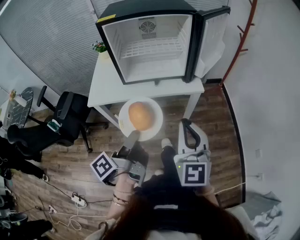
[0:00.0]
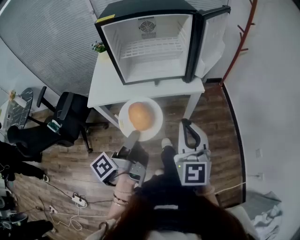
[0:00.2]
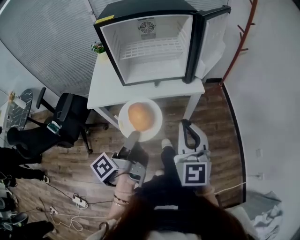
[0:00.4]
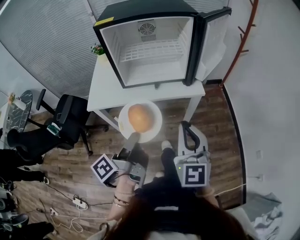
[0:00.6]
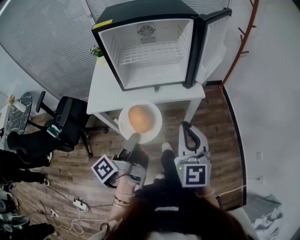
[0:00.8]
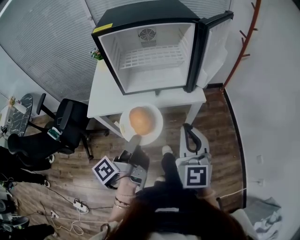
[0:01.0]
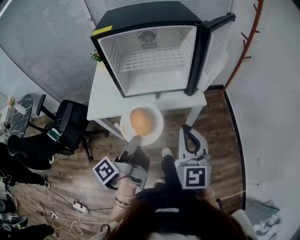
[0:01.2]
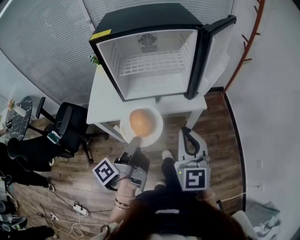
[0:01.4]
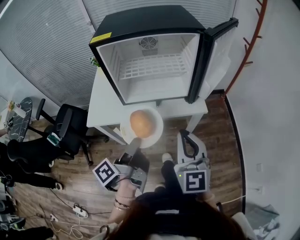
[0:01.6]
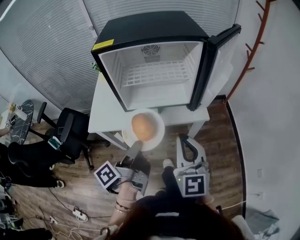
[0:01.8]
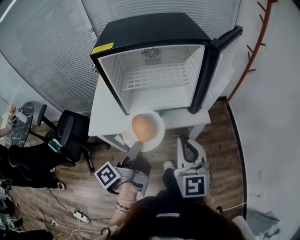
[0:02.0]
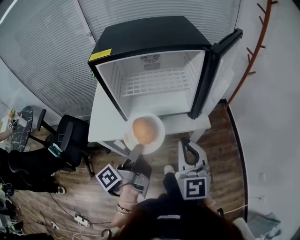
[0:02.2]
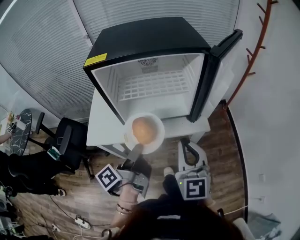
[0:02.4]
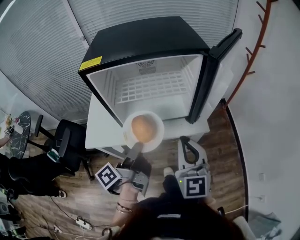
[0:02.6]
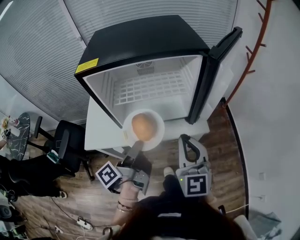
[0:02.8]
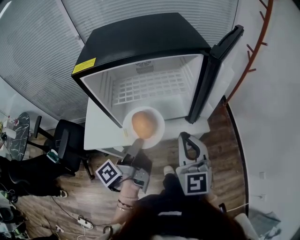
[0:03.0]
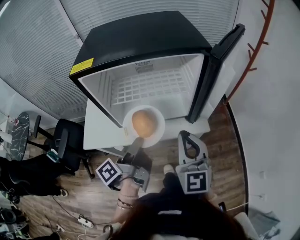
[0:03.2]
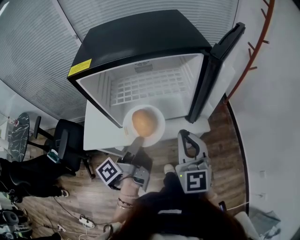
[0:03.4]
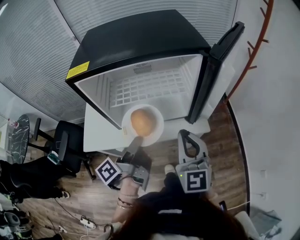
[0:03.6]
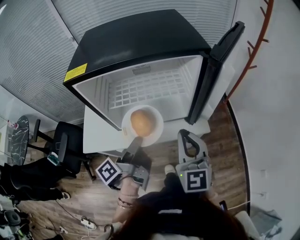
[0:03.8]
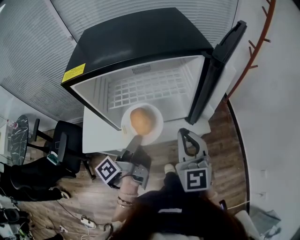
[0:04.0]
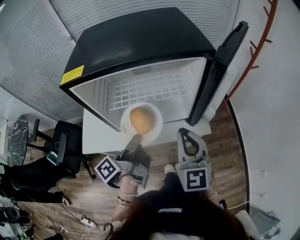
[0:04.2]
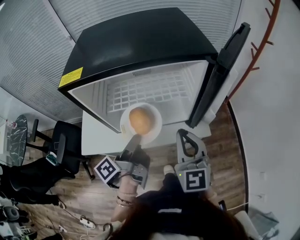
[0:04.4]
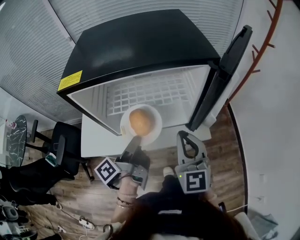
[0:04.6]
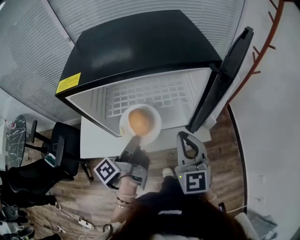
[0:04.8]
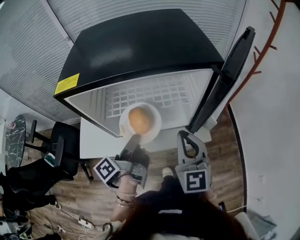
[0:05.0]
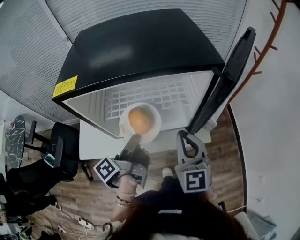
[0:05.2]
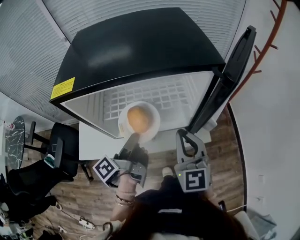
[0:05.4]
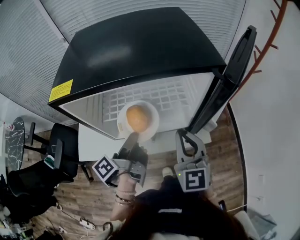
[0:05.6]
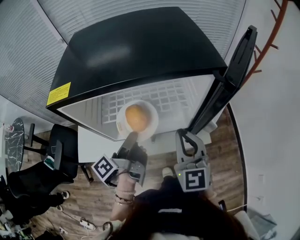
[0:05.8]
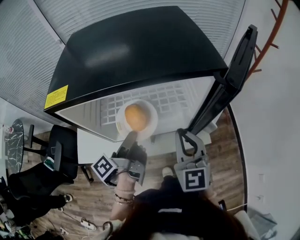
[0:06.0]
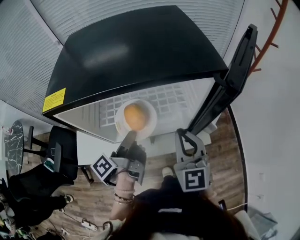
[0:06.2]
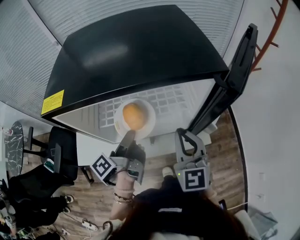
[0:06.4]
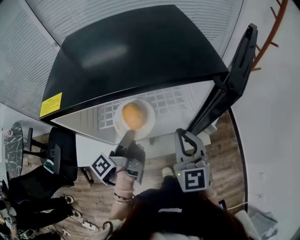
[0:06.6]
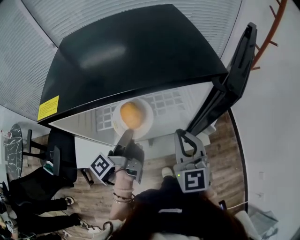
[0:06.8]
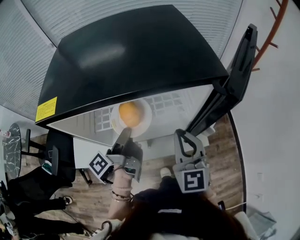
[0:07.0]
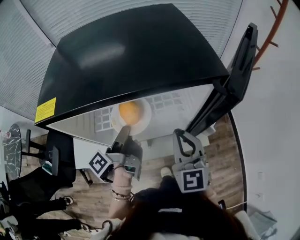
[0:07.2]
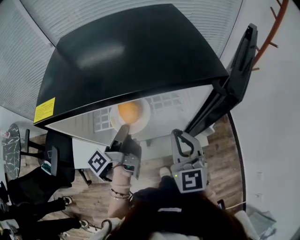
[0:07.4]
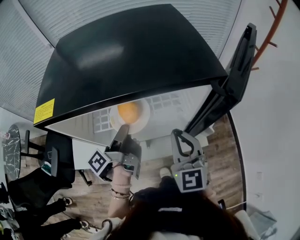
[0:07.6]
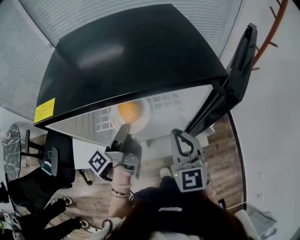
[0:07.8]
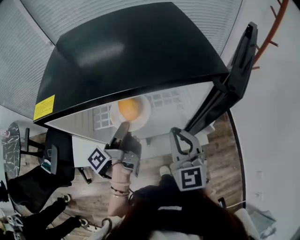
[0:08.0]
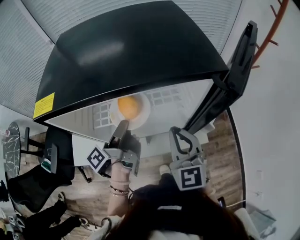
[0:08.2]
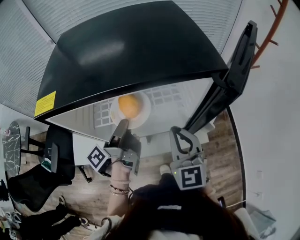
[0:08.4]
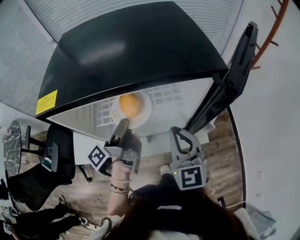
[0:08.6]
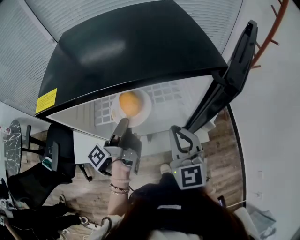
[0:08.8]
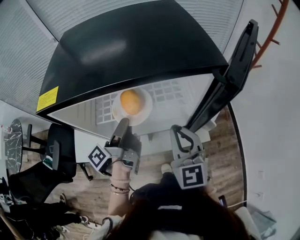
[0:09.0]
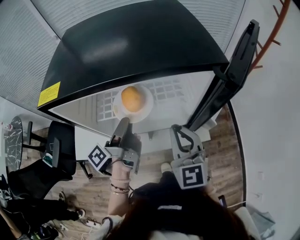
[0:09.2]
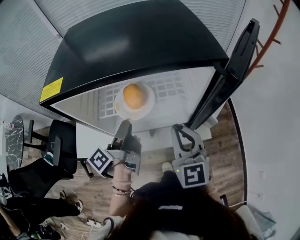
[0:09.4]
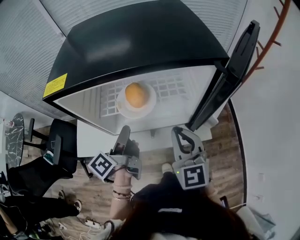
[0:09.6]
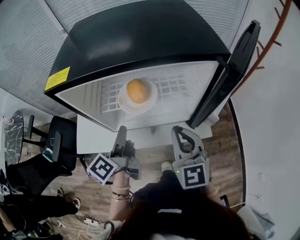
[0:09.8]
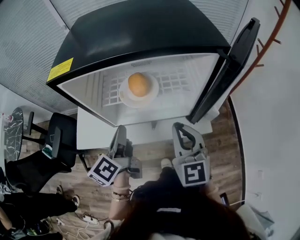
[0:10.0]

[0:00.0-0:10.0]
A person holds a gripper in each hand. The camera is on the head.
0:00.0 to 0:01.4: The right gripper changes place by some 10 cm.
0:01.4 to 0:02.8: The right gripper ends up approximately 10 cm from where it was.
0:02.8 to 0:04.2: The right gripper moves about 5 cm.
0:04.2 to 0:05.8: The right gripper ends up approximately 5 cm from where it was.
0:08.6 to 0:10.0: The right gripper moves approximately 5 cm.

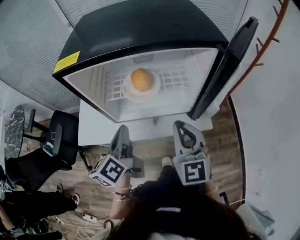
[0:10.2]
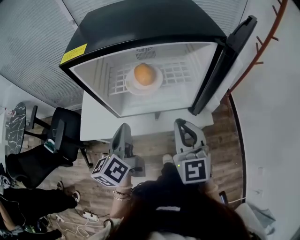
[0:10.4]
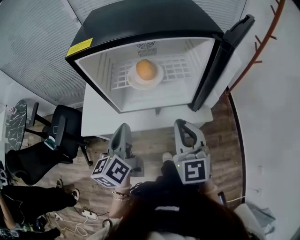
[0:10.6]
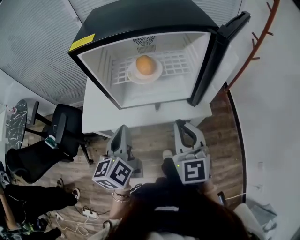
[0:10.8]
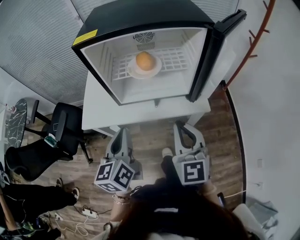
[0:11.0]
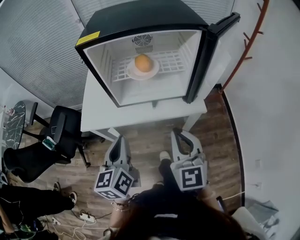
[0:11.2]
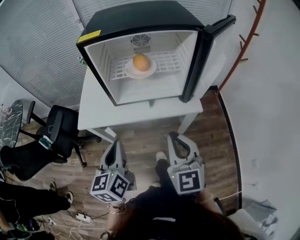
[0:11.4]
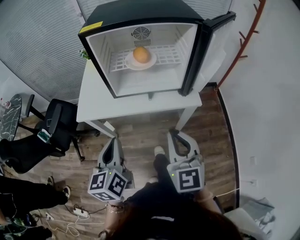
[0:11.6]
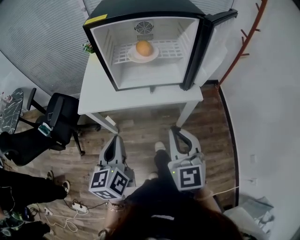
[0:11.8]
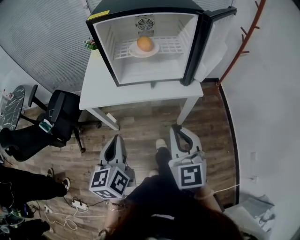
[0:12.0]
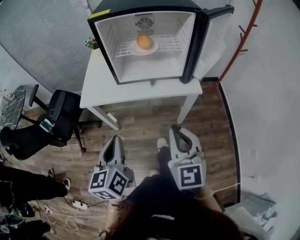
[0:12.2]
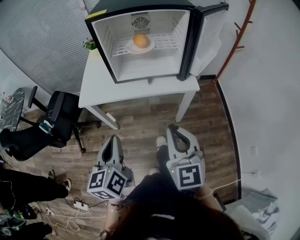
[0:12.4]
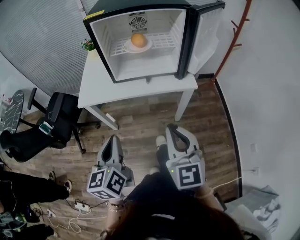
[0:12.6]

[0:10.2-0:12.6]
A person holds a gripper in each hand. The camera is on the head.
0:10.2 to 0:11.4: The right gripper shifts by approximately 15 cm.
0:11.4 to 0:12.6: The right gripper moves about 10 cm.

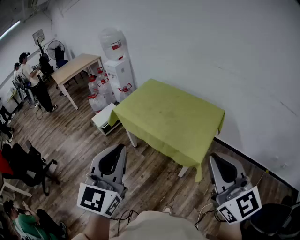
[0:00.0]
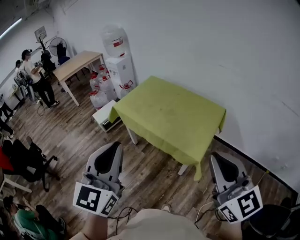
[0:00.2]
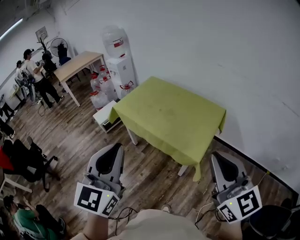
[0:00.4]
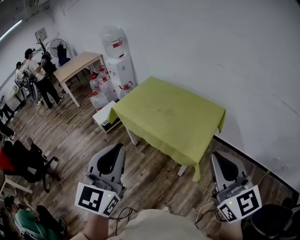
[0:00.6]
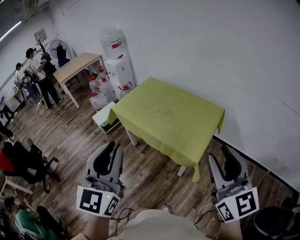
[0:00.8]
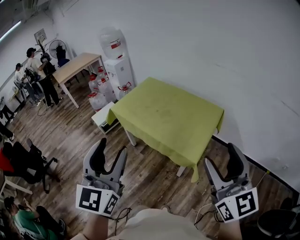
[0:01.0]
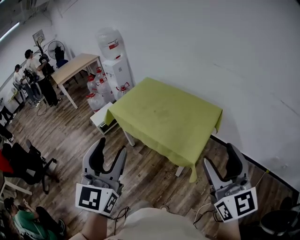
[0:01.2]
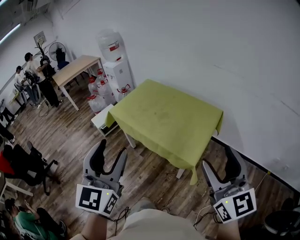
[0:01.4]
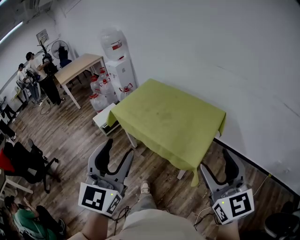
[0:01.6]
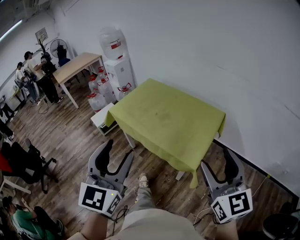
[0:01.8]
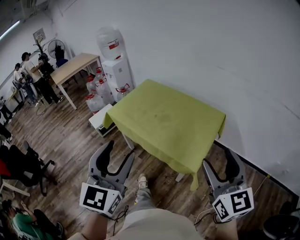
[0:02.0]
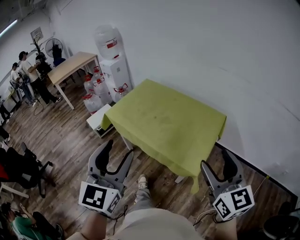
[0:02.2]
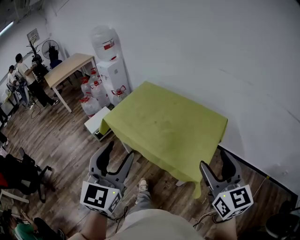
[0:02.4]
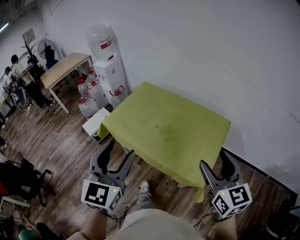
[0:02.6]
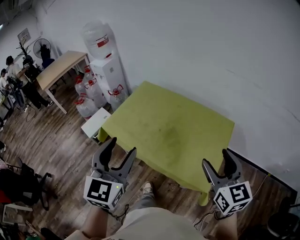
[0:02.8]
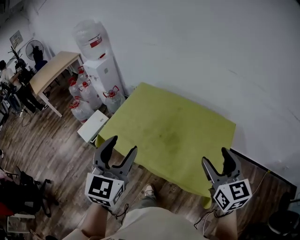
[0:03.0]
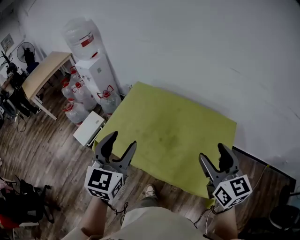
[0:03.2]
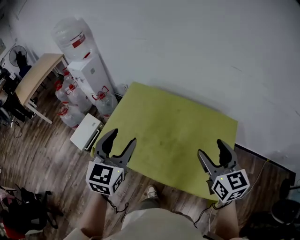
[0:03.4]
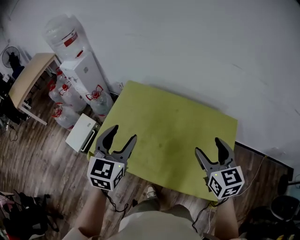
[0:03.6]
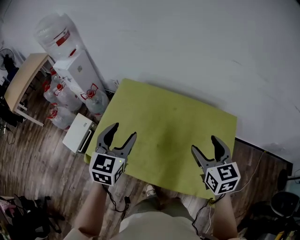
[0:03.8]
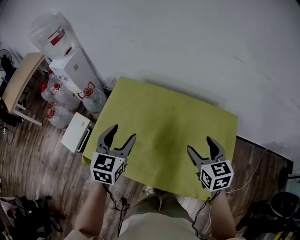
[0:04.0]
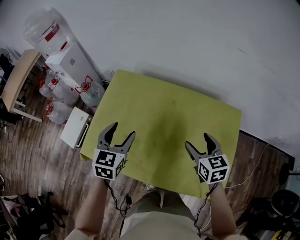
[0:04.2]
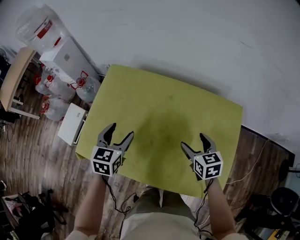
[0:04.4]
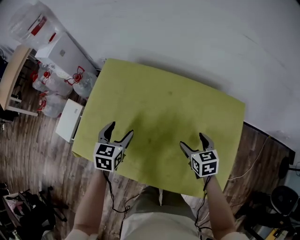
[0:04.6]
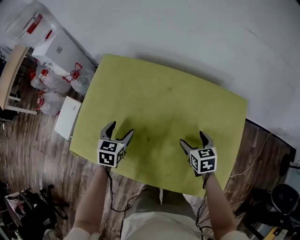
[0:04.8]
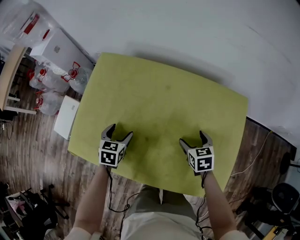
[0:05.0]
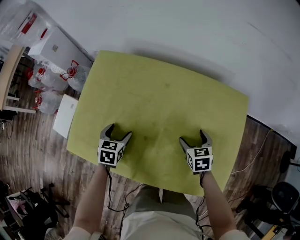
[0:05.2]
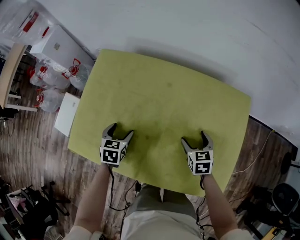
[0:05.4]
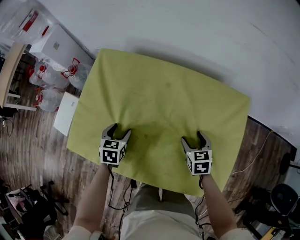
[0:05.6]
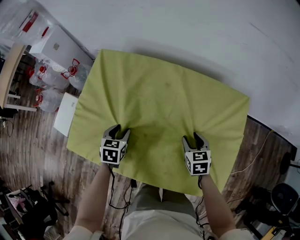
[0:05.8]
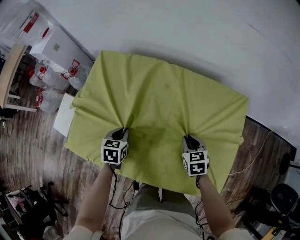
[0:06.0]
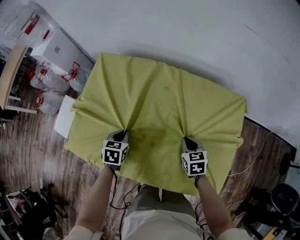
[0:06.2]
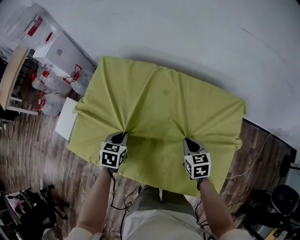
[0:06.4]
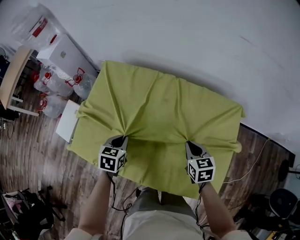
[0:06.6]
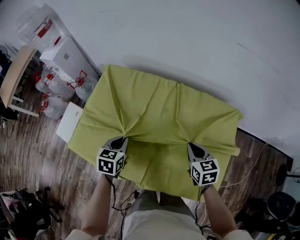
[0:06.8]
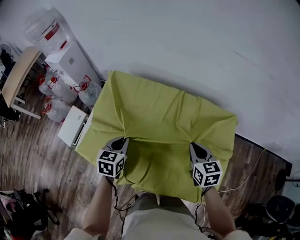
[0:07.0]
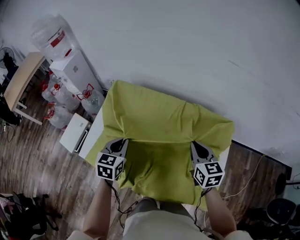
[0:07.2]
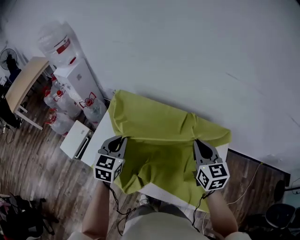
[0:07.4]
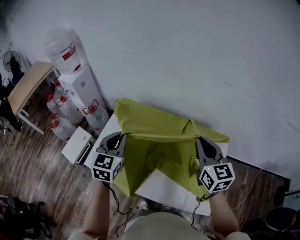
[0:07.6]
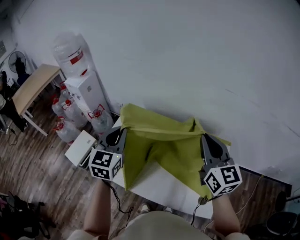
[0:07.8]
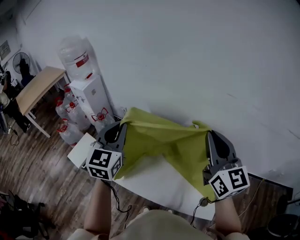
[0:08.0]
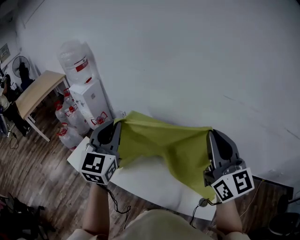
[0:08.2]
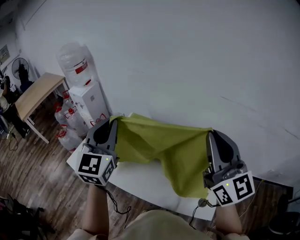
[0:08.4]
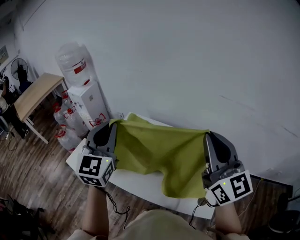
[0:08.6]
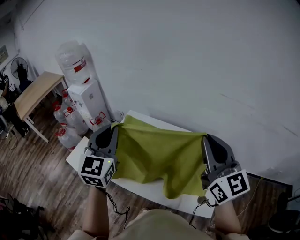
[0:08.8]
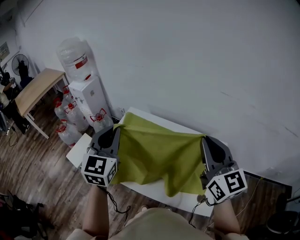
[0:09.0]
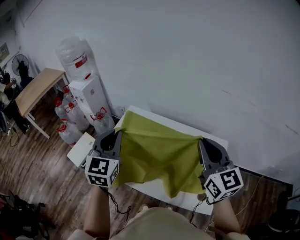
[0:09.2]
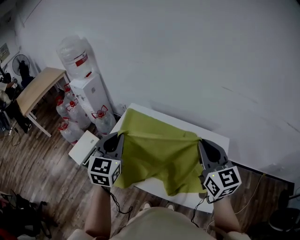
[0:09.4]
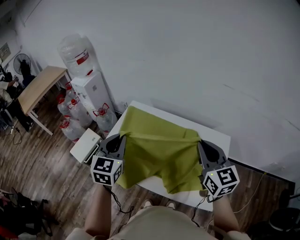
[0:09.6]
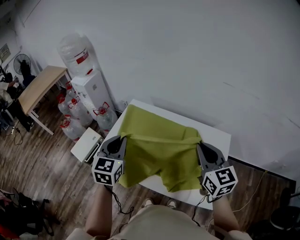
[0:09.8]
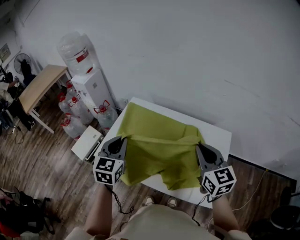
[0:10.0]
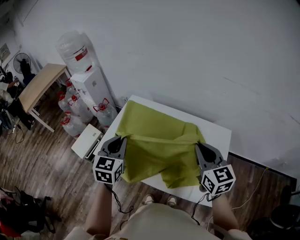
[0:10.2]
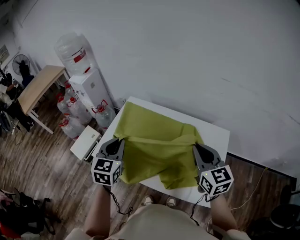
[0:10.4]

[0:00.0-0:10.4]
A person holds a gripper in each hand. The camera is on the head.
0:00.0 to 0:01.4: The left gripper ends up some 5 cm from where it was, and opens. Meanwhile the right gripper travels to the right by about 10 cm, and opens.
0:01.4 to 0:03.0: The grippers both shift forward by roughly 35 cm. The right gripper rotates some 20 degrees.
0:03.0 to 0:04.4: The right gripper is displaced downward and forward by approximately 35 cm, and turns by roughly 30 degrees, while the left gripper goes about 40 cm forward and downward, and swivels approximately 30 degrees.
0:04.4 to 0:06.0: Both grippers travel together downward, some 15 cm. The right gripper closes up. The left gripper swivels about 20 degrees, and closes.
0:06.0 to 0:07.4: Both grippers move upward, about 30 cm. The right gripper angles its fingers upward, by about 30 degrees, while the left gripper swivels roughly 30 degrees.
0:07.4 to 0:09.0: The left gripper goes roughly 20 cm upward, and rotates about 20 degrees. Meanwhile the right gripper heads upward and backward, covering approximately 25 cm, and swivels approximately 20 degrees.
0:09.0 to 0:10.4: Both grippers move downward, approximately 15 cm.

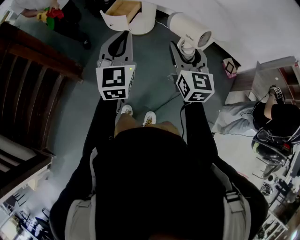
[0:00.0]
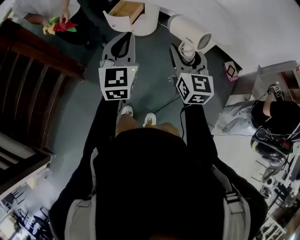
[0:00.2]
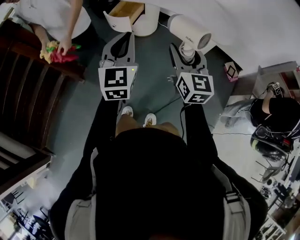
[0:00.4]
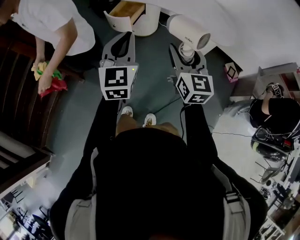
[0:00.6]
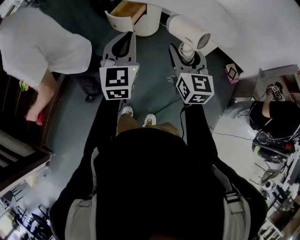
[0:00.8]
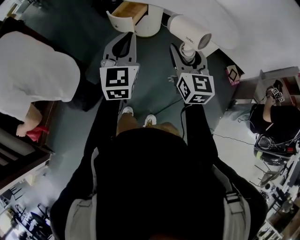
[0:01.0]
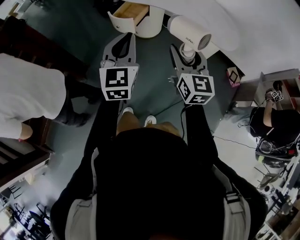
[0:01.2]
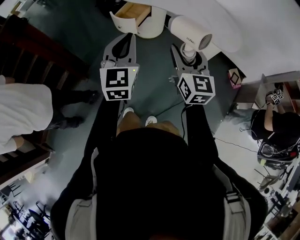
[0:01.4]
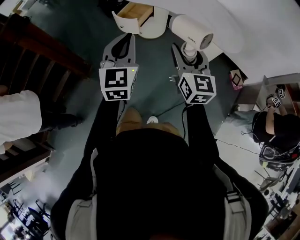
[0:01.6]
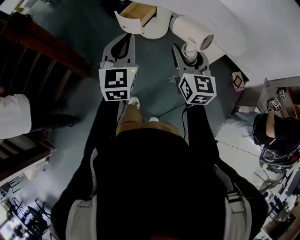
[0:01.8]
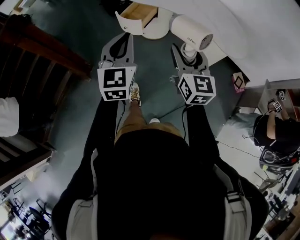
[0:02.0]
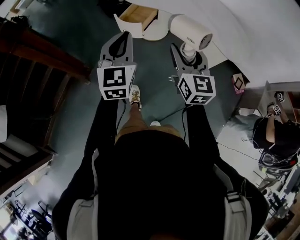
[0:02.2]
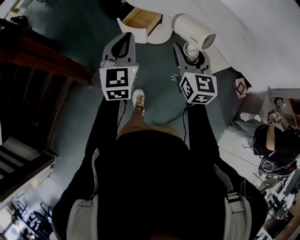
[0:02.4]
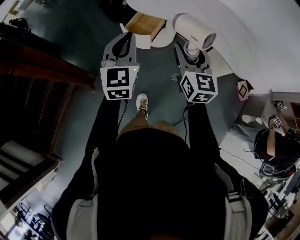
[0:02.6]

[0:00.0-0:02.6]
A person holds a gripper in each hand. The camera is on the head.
0:00.0 to 0:01.2: The grippers move only a little.
0:01.2 to 0:02.6: Both grippers move forward and to the left, roughly 20 cm.
